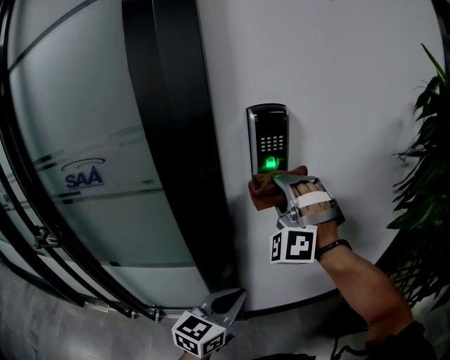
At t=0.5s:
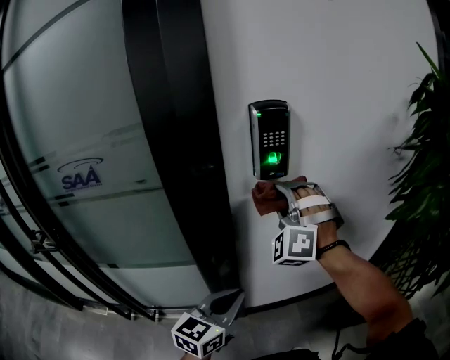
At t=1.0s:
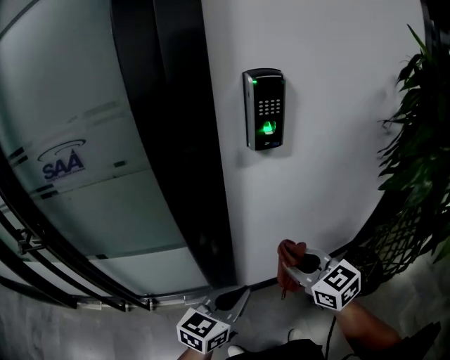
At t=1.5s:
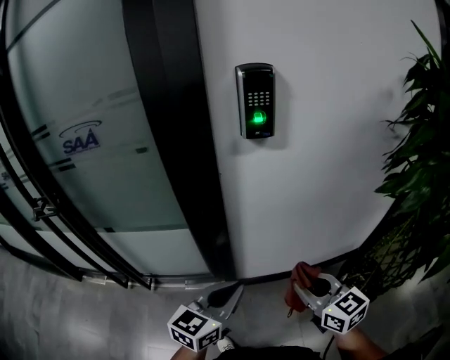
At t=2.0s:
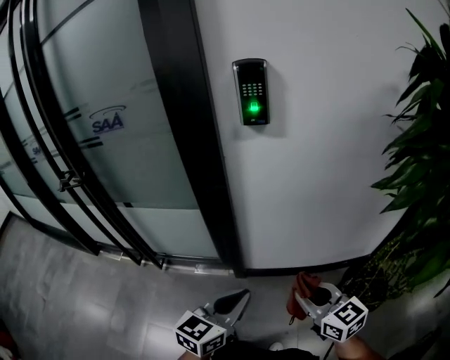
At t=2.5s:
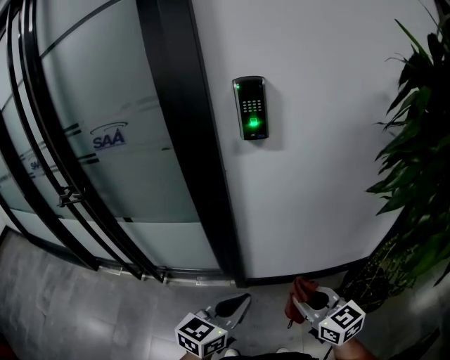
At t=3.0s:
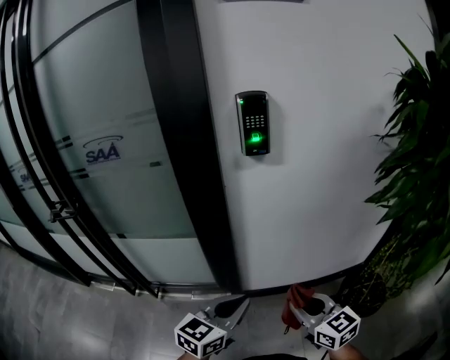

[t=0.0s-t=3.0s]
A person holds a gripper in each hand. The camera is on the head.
t=0.0s to t=1.5s: The right gripper travels backward, downward and to the right by some 35 cm, and rolls clockwise, seen from behind, by approximately 90 degrees, while the left gripper goes approximately 10 cm backward.
t=1.5s to t=3.0s: Both grippers travel together backward, about 5 cm.

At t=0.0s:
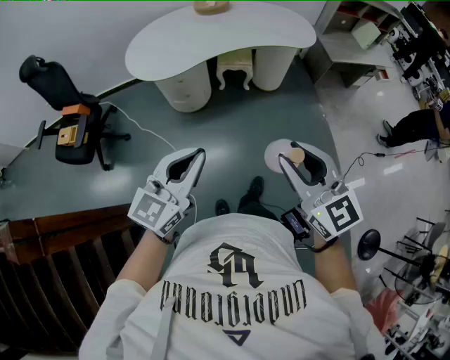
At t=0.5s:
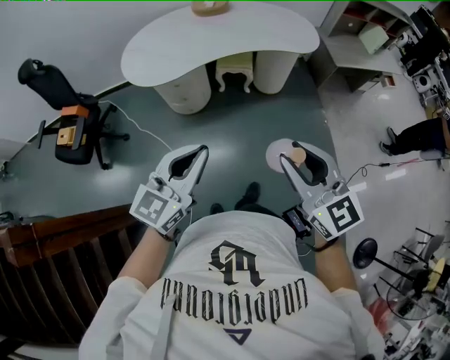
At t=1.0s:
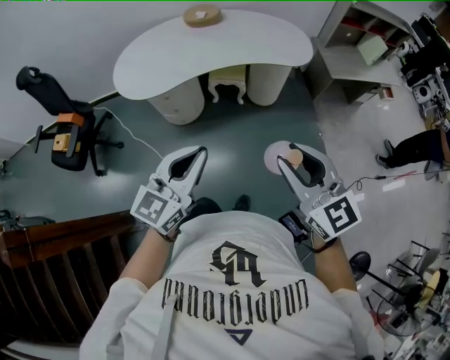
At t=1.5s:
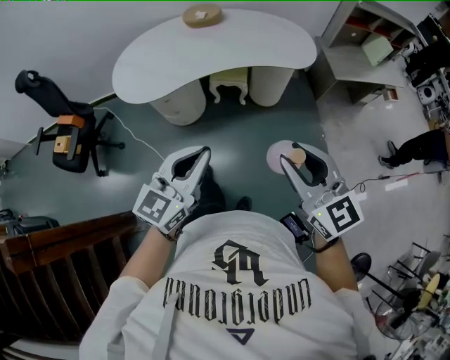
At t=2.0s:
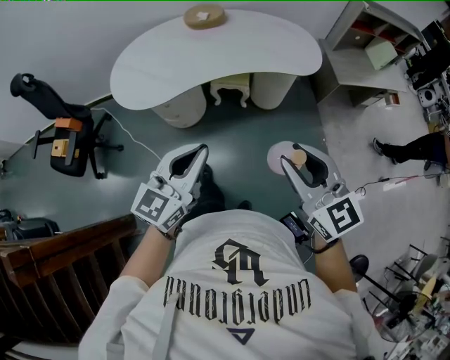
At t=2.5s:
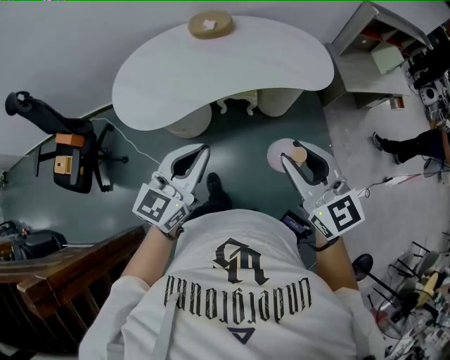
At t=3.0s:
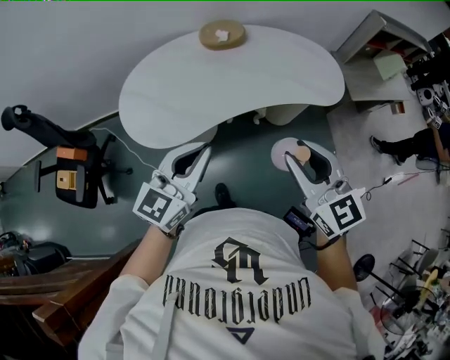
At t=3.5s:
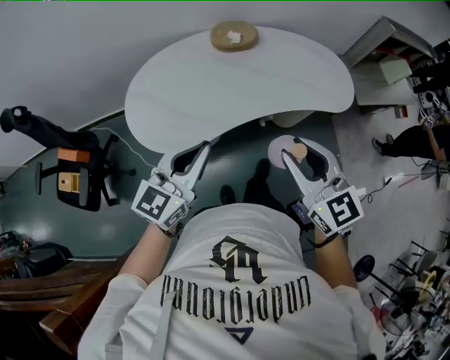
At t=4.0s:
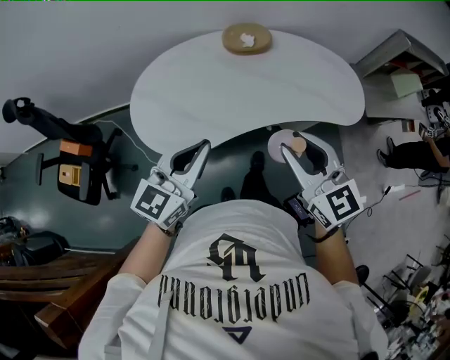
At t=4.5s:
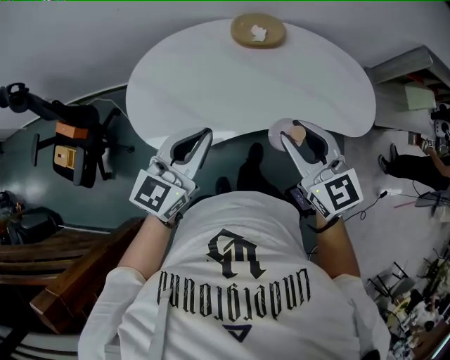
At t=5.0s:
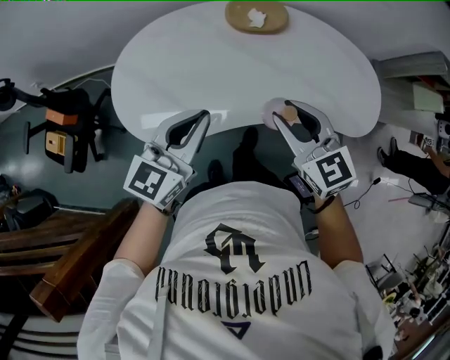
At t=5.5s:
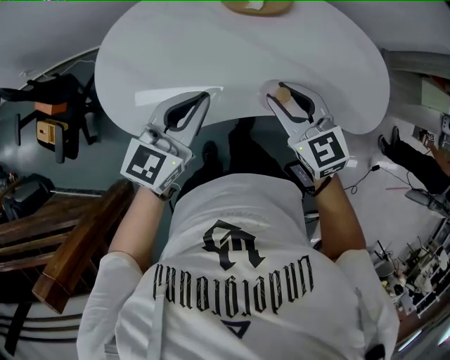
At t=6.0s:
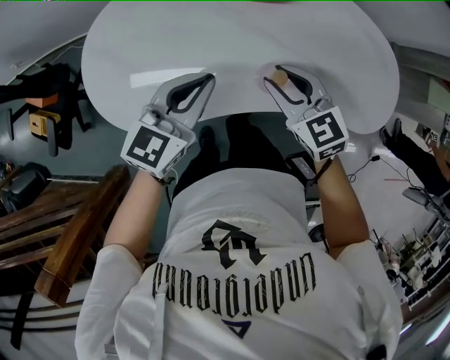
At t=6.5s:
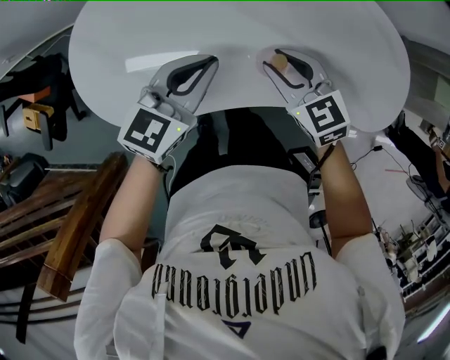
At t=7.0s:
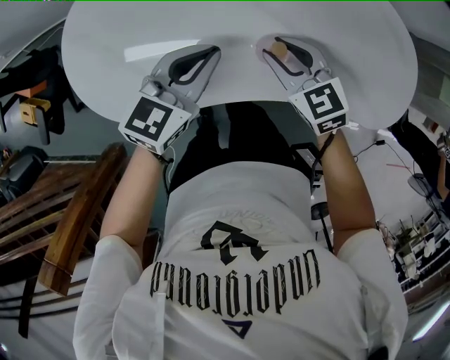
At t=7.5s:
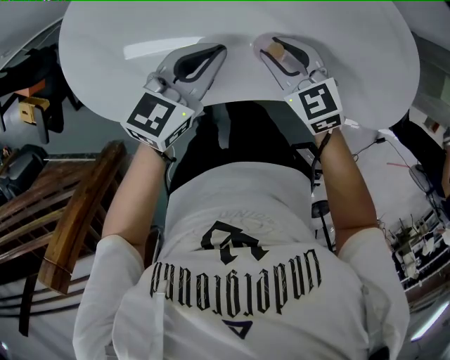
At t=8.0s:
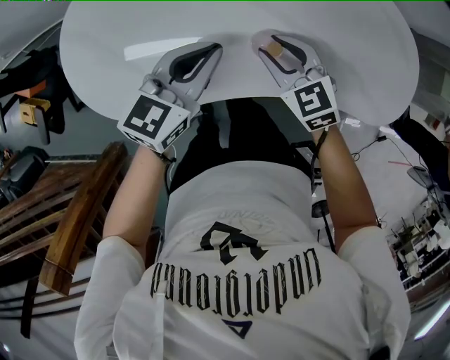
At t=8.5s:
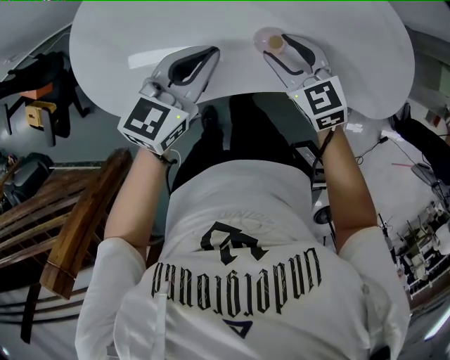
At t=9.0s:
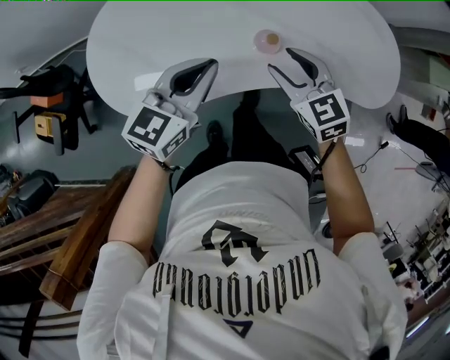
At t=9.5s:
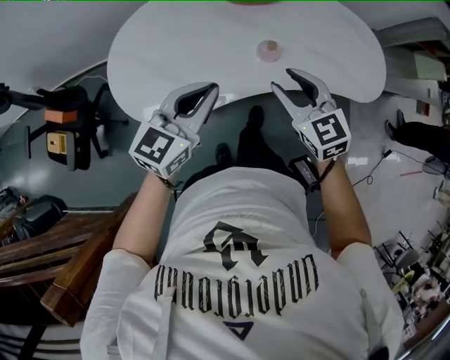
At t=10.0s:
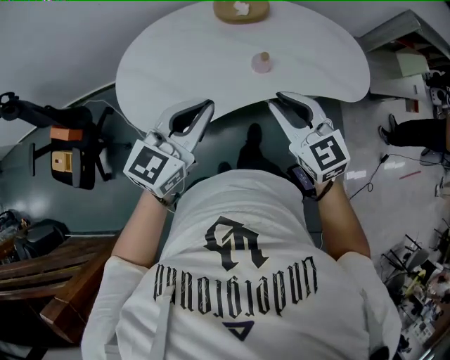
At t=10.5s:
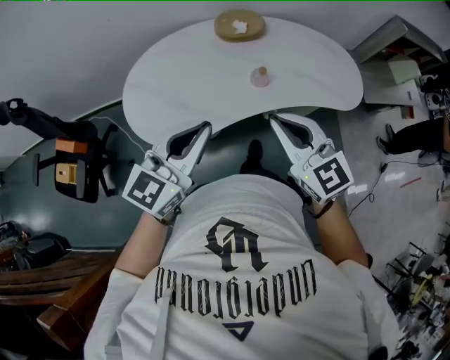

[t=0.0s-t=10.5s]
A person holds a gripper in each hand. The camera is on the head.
t=0.0s to t=2.0s: The grippers both shift forward and to the right by roughly 25 cm.
t=2.0s to t=4.0s: The two grippers go roughly 40 cm forward and to the left.
t=4.0s to t=6.5s: The left gripper moves forward, downward and to the right, about 35 cm. Meanwhile the right gripper shifts about 40 cm downward and forward, and turns by approximately 30 degrees.
t=6.5s to t=8.5s: There are only small adjustments of the grippers.
t=8.5s to t=10.5s: The left gripper shifts roughly 35 cm backward and upward, and swivels about 20 degrees. Meanwhile the right gripper heads upward and backward, covering about 40 cm, changes its angle by some 30 degrees, and closes.

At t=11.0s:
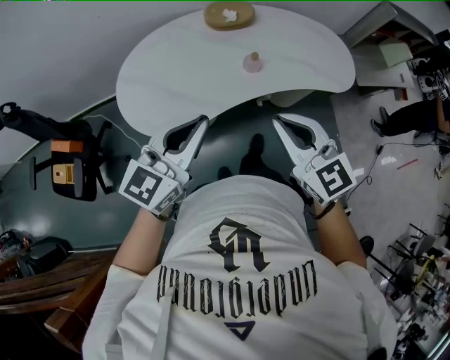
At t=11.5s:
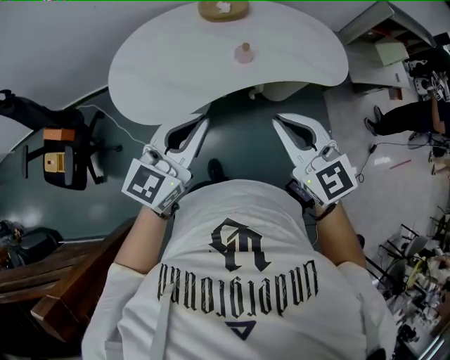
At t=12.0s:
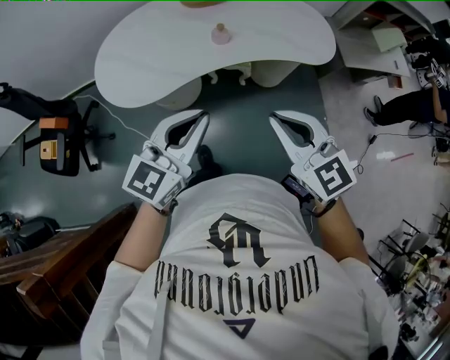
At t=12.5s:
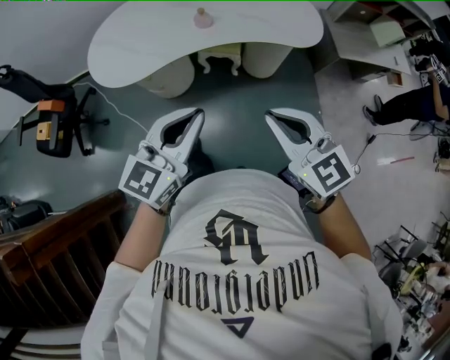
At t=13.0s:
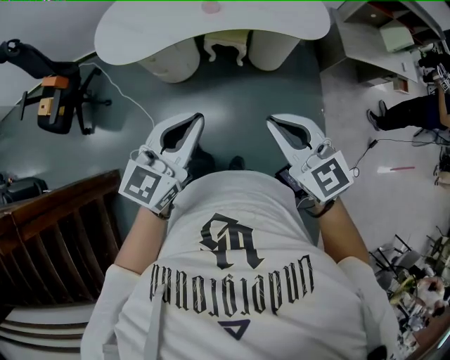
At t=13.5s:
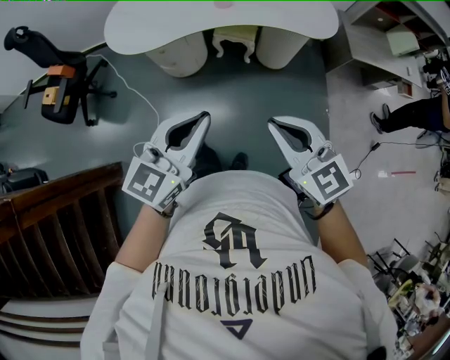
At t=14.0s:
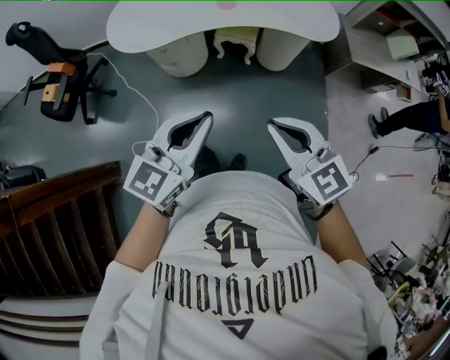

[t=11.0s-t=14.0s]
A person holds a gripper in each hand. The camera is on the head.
t=11.0s to t=12.5s: Both grippers travel together to the right and backward, approximately 30 cm.
t=12.5s to t=14.0s: Both grippers travel together backward, some 10 cm.

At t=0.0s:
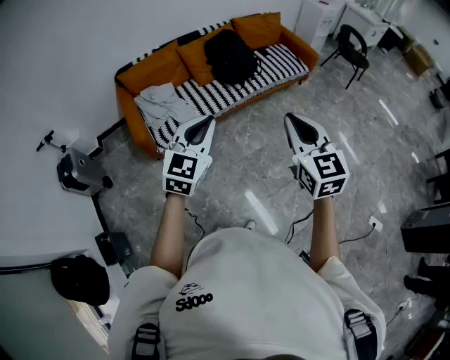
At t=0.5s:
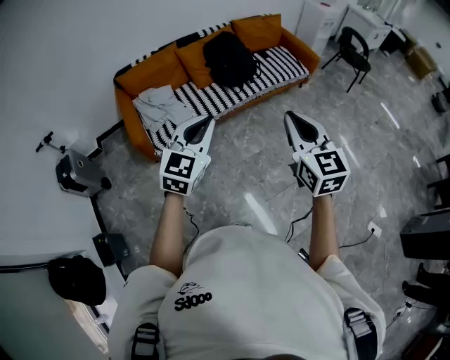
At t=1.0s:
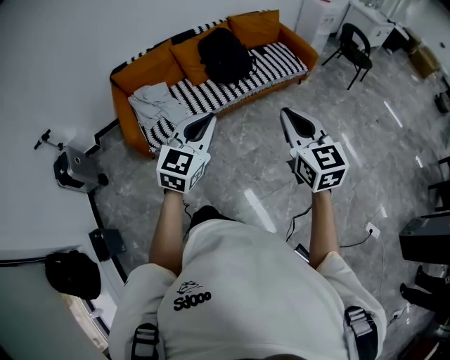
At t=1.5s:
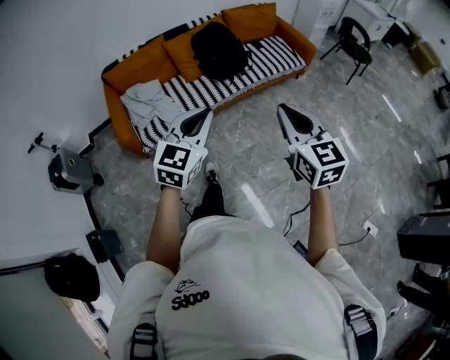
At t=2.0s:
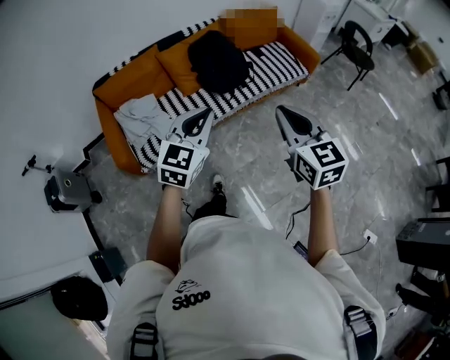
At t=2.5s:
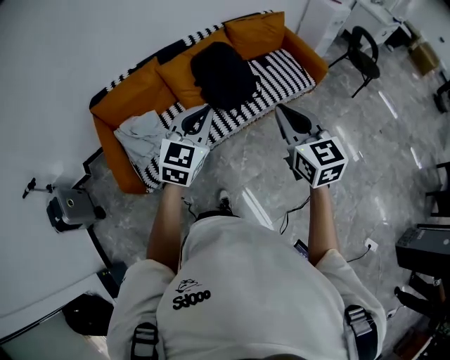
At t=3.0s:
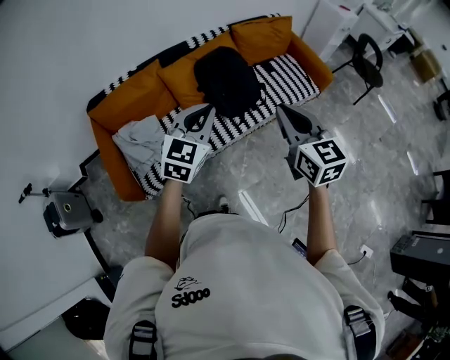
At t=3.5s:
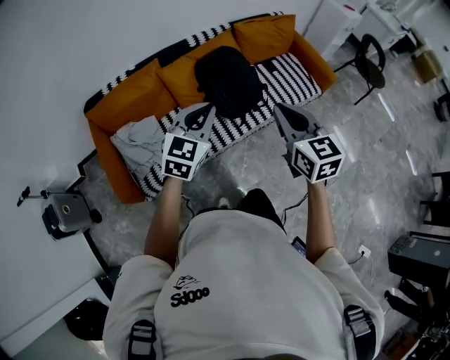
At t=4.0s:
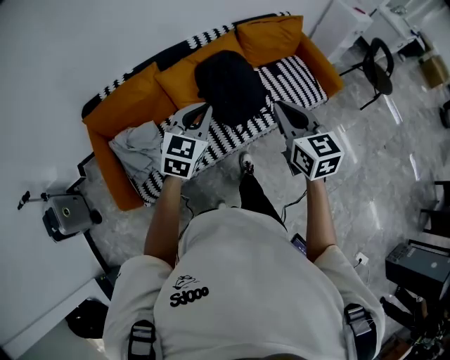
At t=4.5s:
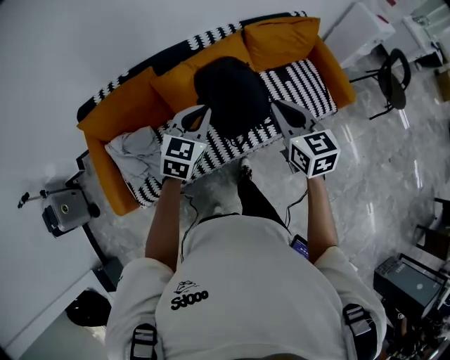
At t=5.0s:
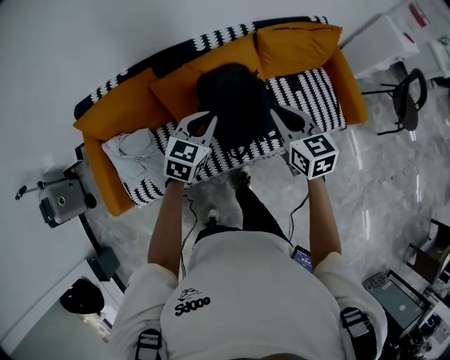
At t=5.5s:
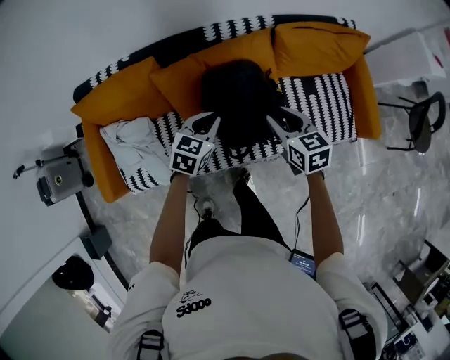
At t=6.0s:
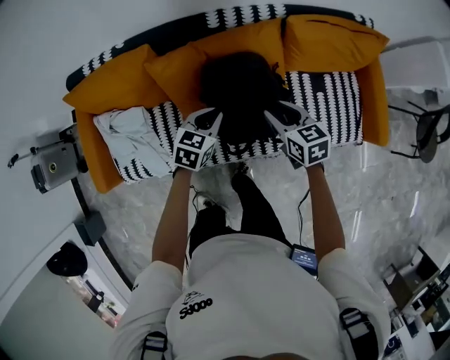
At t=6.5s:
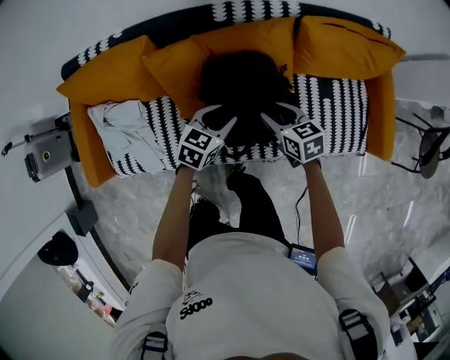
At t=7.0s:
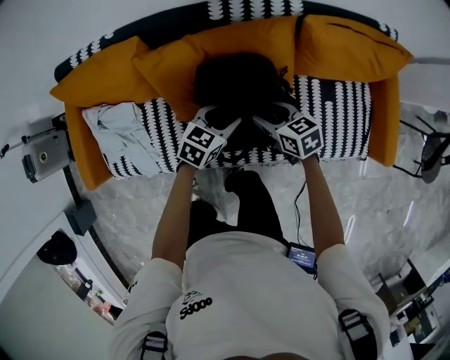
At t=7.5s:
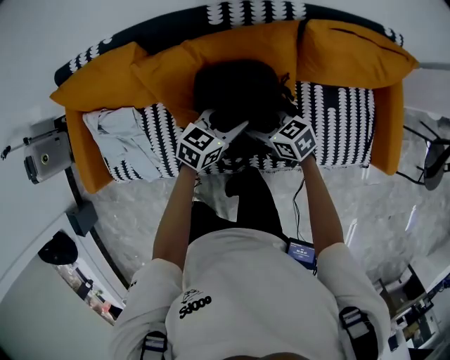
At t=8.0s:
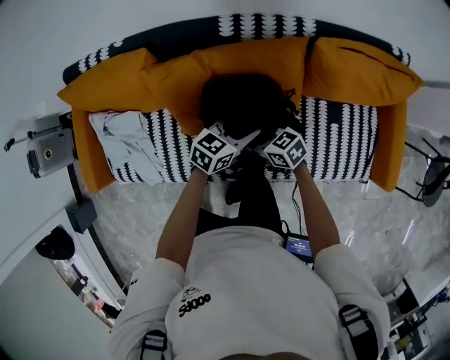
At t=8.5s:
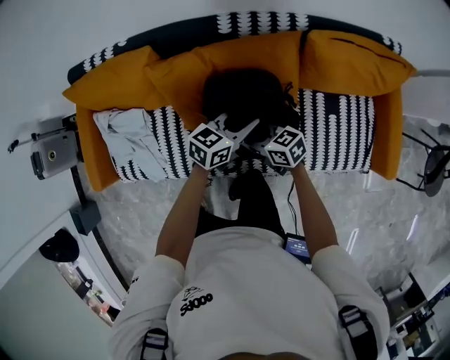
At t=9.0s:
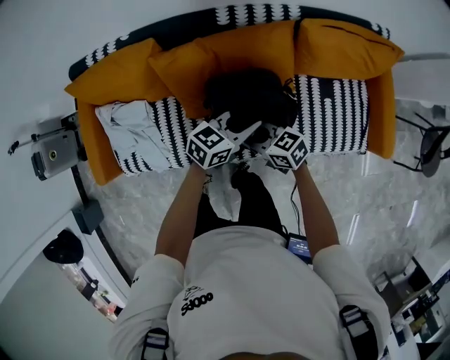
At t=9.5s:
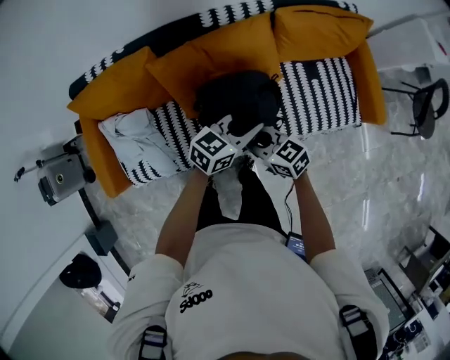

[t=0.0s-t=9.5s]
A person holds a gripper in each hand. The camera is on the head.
t=0.0s to t=2.0s: Both grippers move forward, roughly 30 cm.
t=2.0s to t=4.0s: Both grippers are carried forward, about 50 cm.
t=4.0s to t=5.5s: Both grippers travel together forward and downward, approximately 40 cm. The left gripper changes its angle by some 30 degrees. Meanwhile the right gripper turns by about 30 degrees, and opens up.
t=5.5s to t=7.5s: The two grippers go about 20 cm downward. The right gripper changes its angle by roughly 40 degrees. Meanwhile the left gripper opens its fingers.
t=7.5s to t=9.5s: The left gripper travels upward by about 20 cm, and closes its fingers. Meanwhile the right gripper changes place by approximately 25 cm, and closes up.
